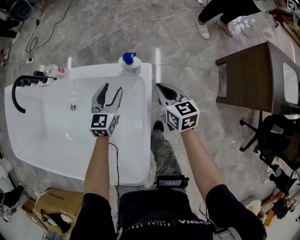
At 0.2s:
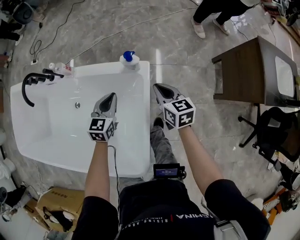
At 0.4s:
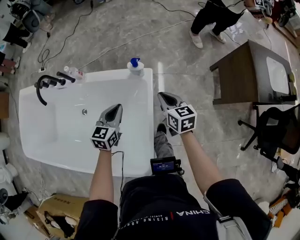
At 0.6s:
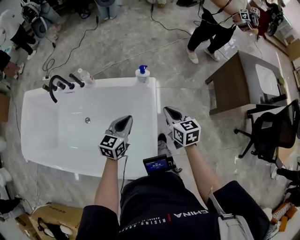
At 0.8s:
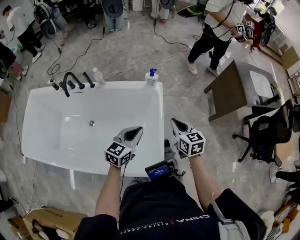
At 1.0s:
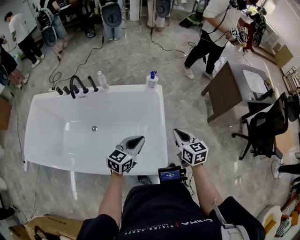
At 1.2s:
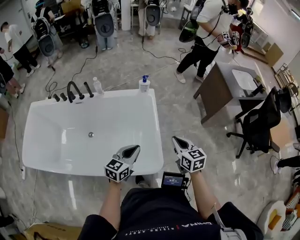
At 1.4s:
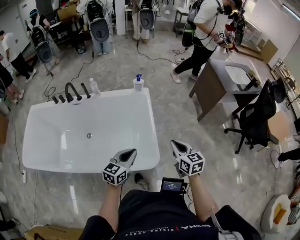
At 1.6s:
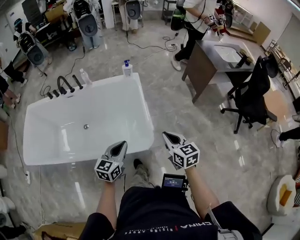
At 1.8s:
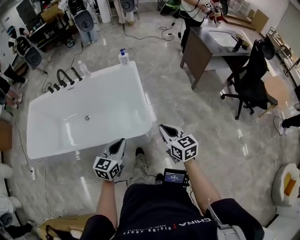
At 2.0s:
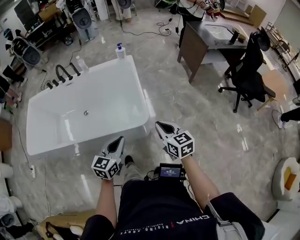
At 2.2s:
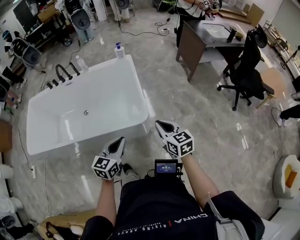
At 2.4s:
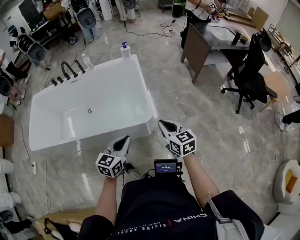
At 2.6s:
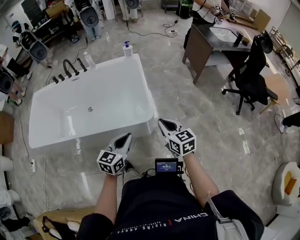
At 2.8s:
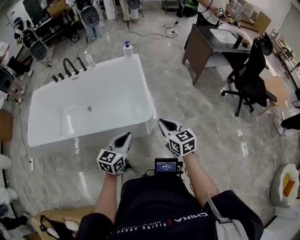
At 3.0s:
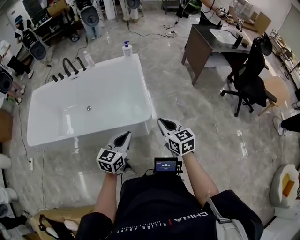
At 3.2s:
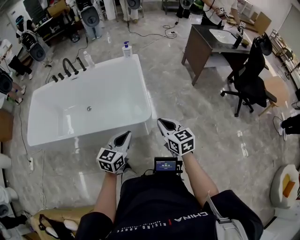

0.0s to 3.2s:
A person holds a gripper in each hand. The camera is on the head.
0.0s to 1.6s: The pair of grippers is taken backward, about 60 cm. The left gripper turns by about 30 degrees, and closes its fingers.
1.6s to 3.2s: Both grippers move backward, about 15 cm.

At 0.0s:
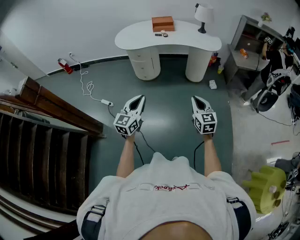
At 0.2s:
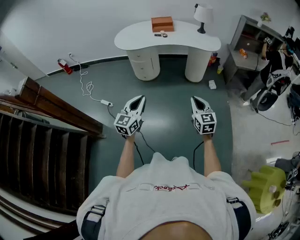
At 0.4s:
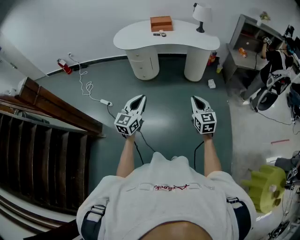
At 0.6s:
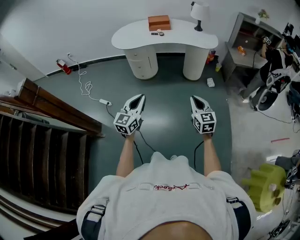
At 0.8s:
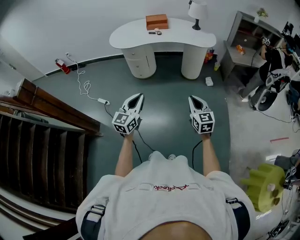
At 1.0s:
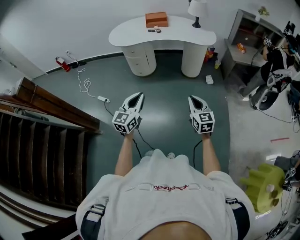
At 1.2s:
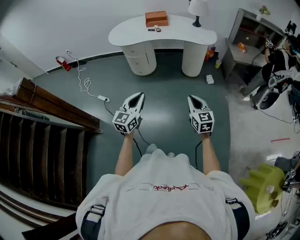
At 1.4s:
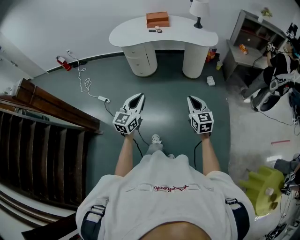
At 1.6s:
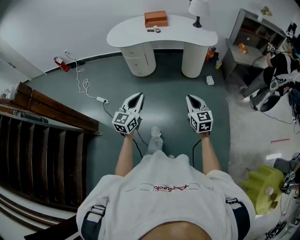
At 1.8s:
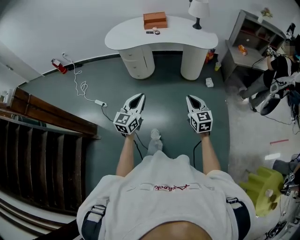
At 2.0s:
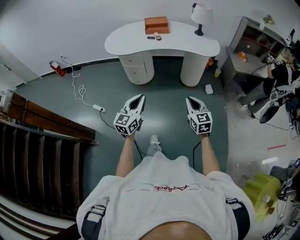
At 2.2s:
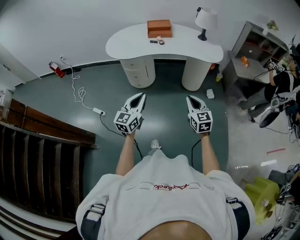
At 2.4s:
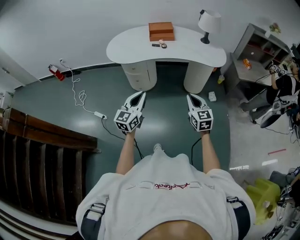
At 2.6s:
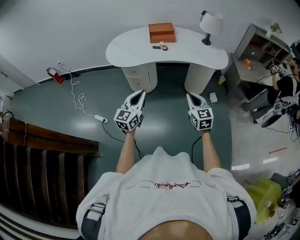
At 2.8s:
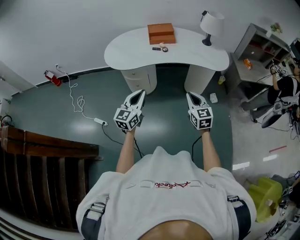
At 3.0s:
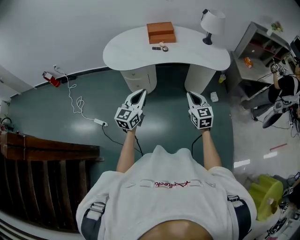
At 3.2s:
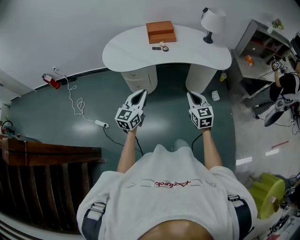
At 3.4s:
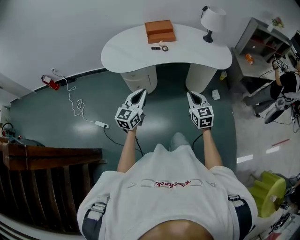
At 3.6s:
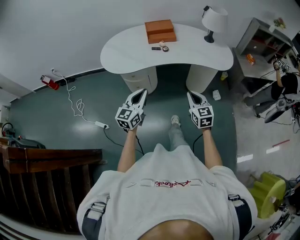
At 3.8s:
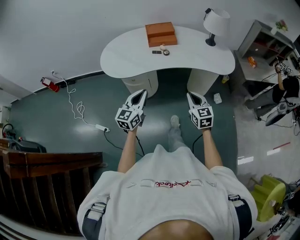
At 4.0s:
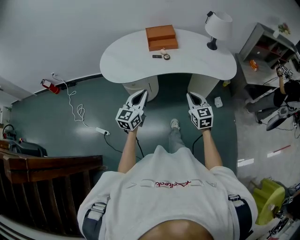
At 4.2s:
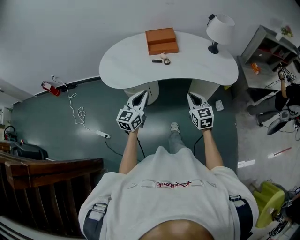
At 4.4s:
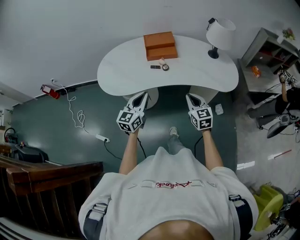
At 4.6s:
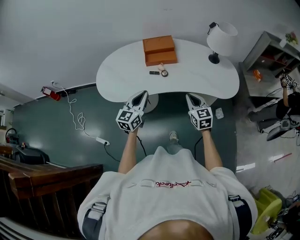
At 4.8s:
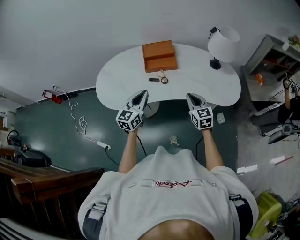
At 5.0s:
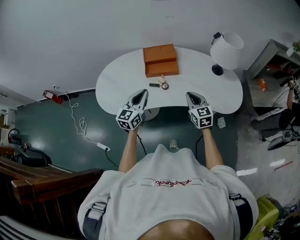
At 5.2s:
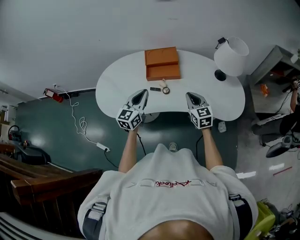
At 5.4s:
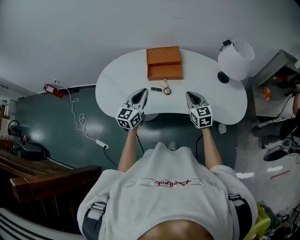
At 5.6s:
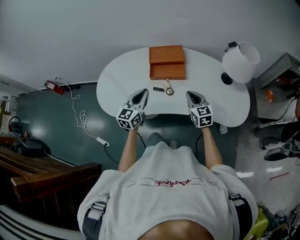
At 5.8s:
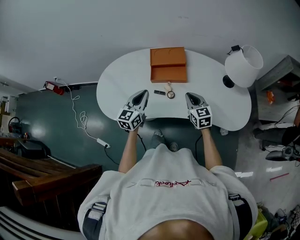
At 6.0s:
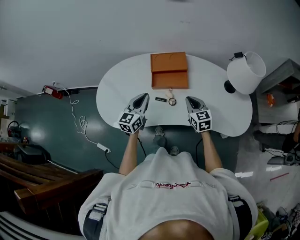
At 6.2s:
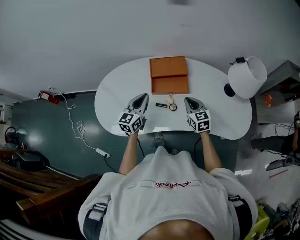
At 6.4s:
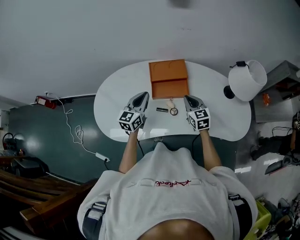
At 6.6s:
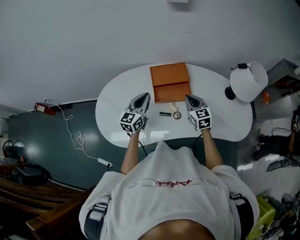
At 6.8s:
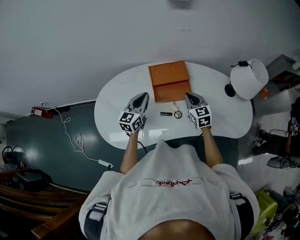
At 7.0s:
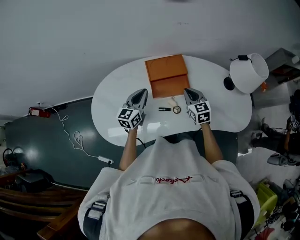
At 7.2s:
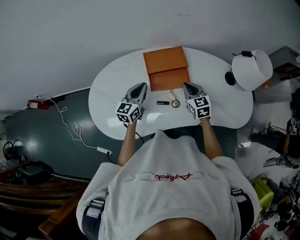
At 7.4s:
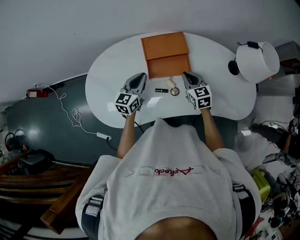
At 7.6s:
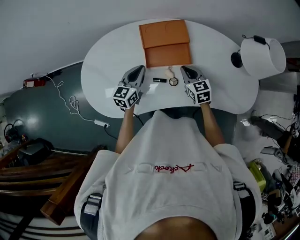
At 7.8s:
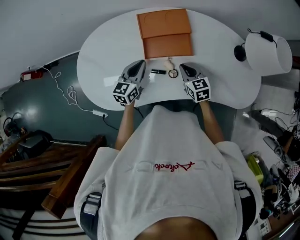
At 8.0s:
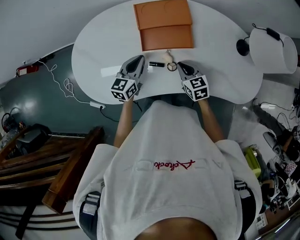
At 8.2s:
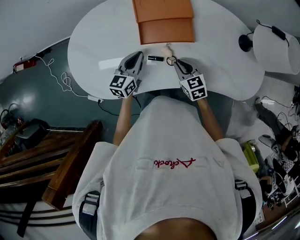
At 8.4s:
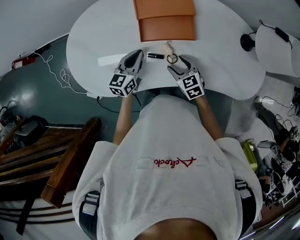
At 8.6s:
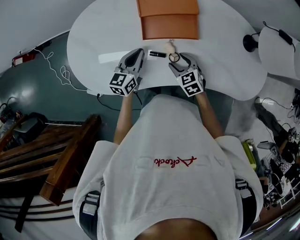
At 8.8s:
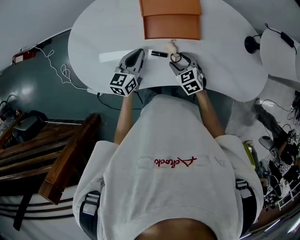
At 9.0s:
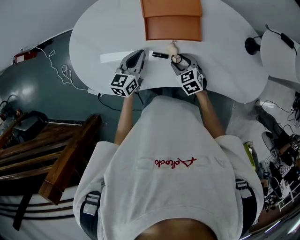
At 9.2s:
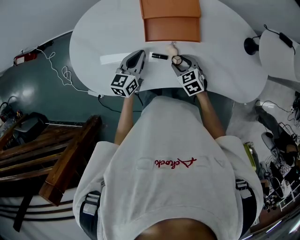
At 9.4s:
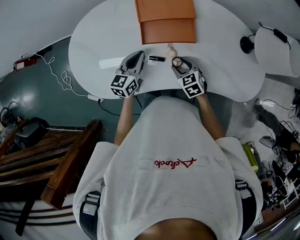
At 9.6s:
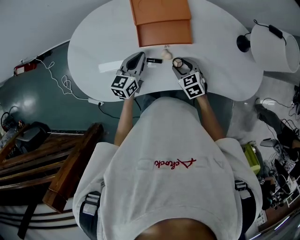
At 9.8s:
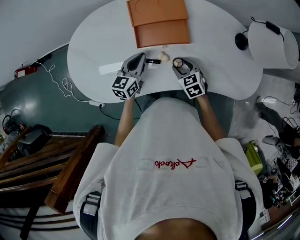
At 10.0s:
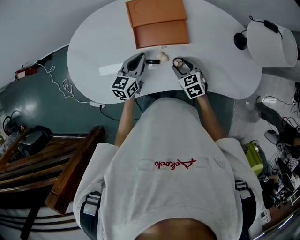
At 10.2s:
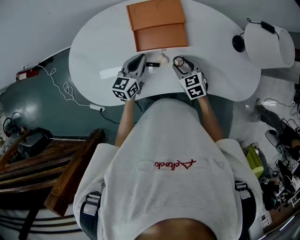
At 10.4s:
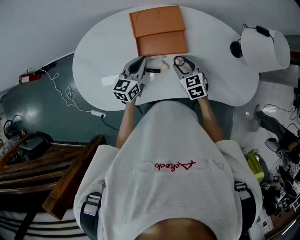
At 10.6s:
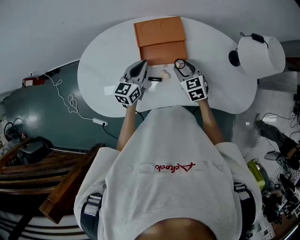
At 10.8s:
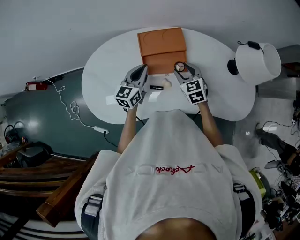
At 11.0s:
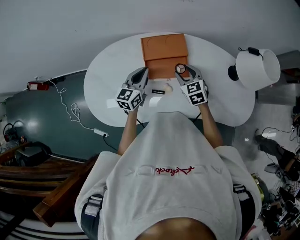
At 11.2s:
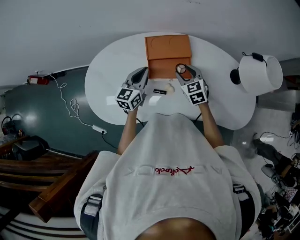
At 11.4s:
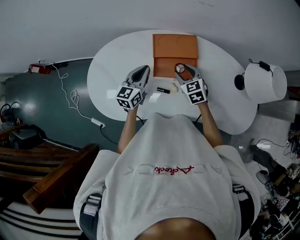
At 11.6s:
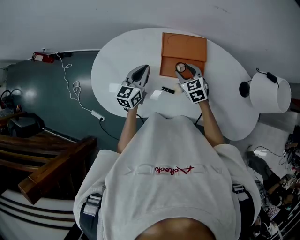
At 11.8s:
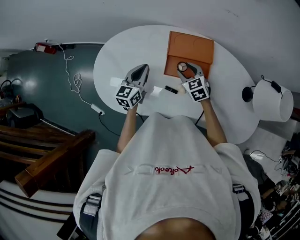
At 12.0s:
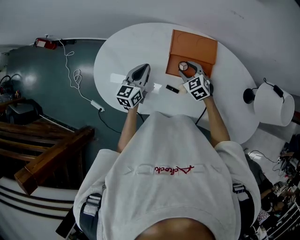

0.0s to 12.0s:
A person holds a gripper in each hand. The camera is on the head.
0.0s to 1.6s: The left gripper is displaced to the right by some 5 cm. Meanwhile the right gripper moves approximately 5 cm.
1.6s to 3.0s: The left gripper travels forward by approximately 30 cm; the right gripper is displaced forward and to the left by some 35 cm.
3.0s to 4.4s: The grippers both shift forward by roughly 20 cm.
4.4s to 6.0s: Both grippers move forward, about 30 cm.
6.0s to 7.6s: The grippers both shift forward and downward by some 15 cm.
7.6s to 9.0s: The right gripper travels downward and backward by some 15 cm, rotates some 30 degrees, and opens. The left gripper goes some 5 cm downward.
9.0s to 10.4s: The right gripper travels upward, to the right and forward by about 10 cm; the left gripper heads to the right, covering about 5 cm.
10.4s to 12.0s: The right gripper heads to the left and forward, covering roughly 15 cm, and swivels some 30 degrees, while the left gripper goes some 15 cm to the left.

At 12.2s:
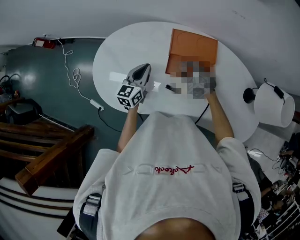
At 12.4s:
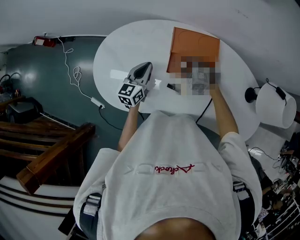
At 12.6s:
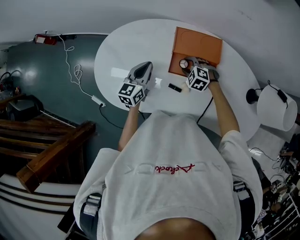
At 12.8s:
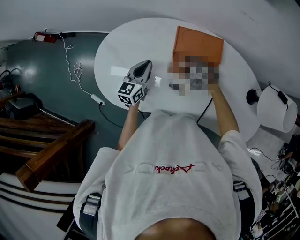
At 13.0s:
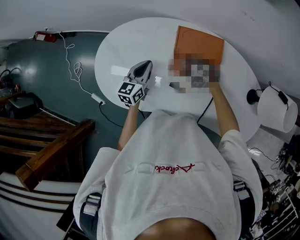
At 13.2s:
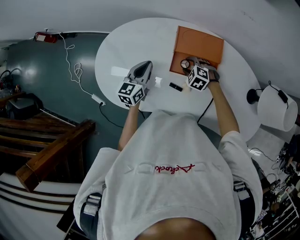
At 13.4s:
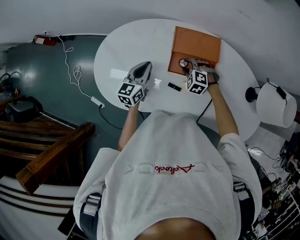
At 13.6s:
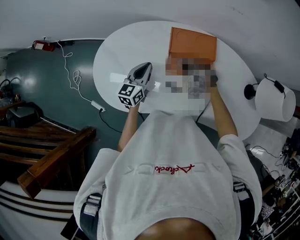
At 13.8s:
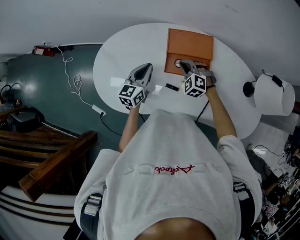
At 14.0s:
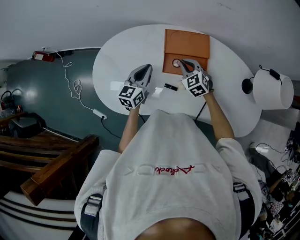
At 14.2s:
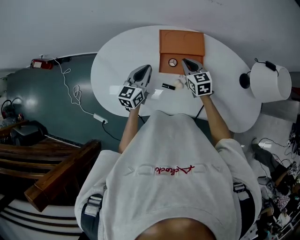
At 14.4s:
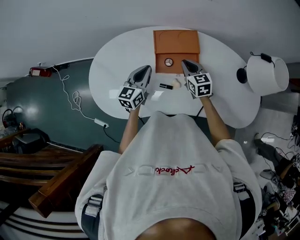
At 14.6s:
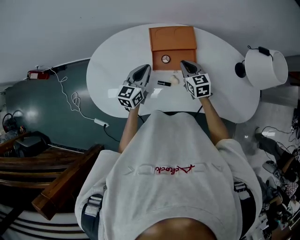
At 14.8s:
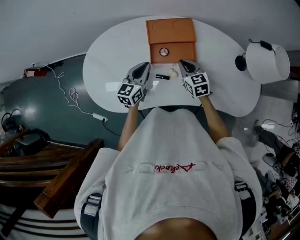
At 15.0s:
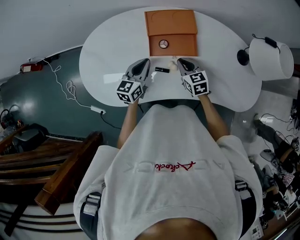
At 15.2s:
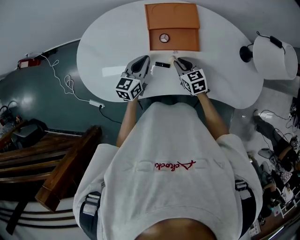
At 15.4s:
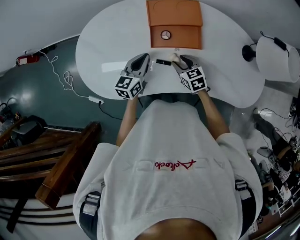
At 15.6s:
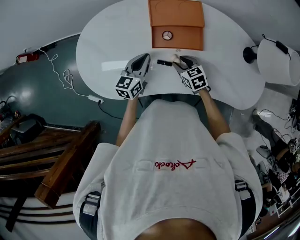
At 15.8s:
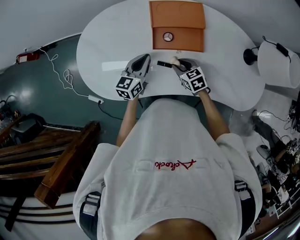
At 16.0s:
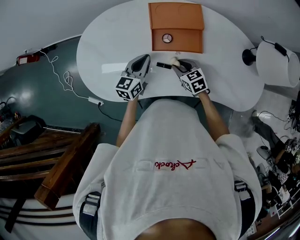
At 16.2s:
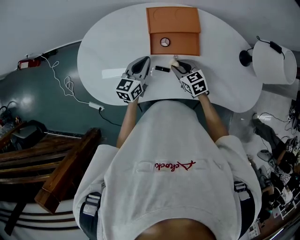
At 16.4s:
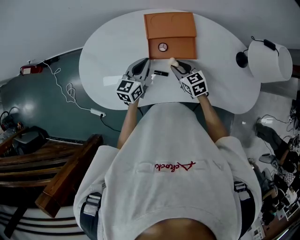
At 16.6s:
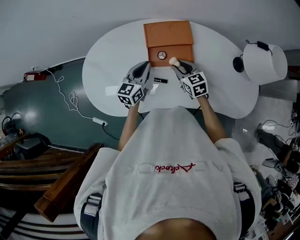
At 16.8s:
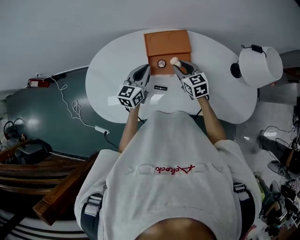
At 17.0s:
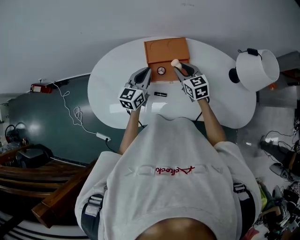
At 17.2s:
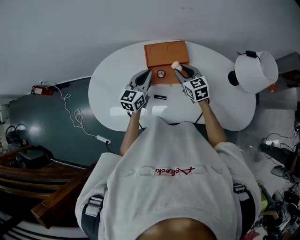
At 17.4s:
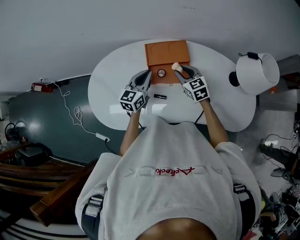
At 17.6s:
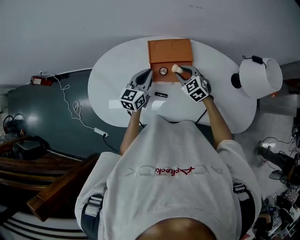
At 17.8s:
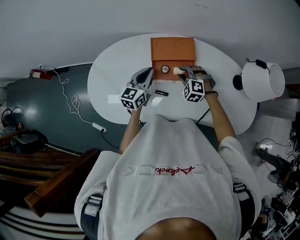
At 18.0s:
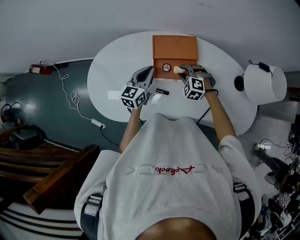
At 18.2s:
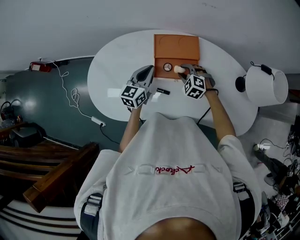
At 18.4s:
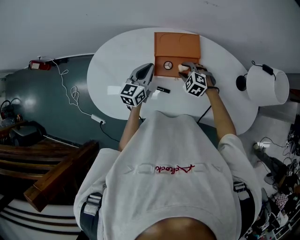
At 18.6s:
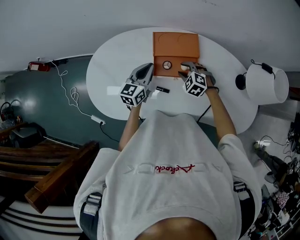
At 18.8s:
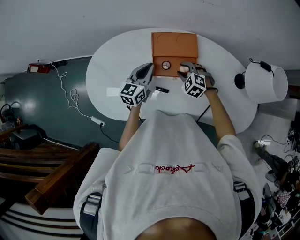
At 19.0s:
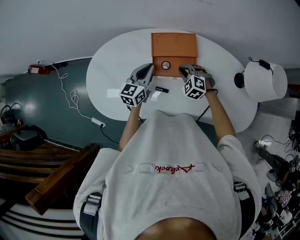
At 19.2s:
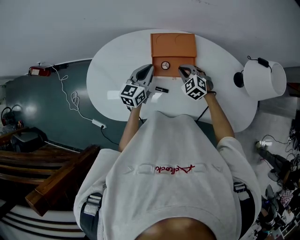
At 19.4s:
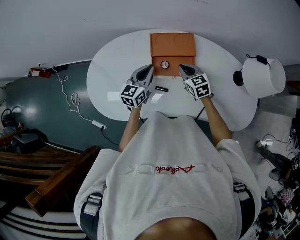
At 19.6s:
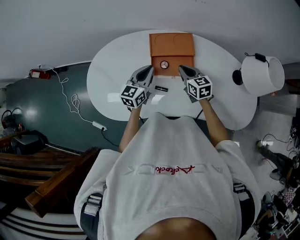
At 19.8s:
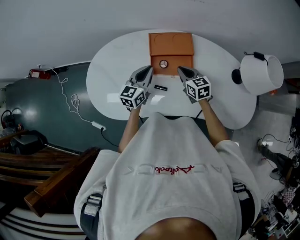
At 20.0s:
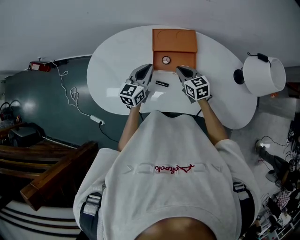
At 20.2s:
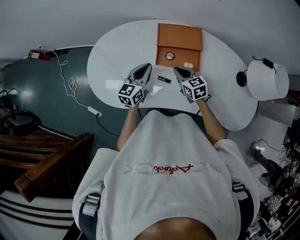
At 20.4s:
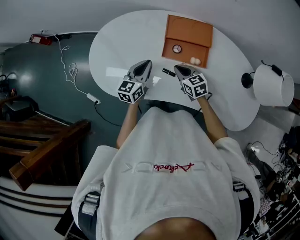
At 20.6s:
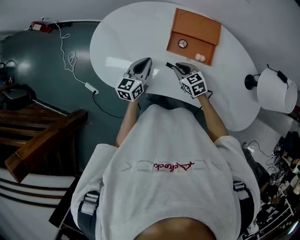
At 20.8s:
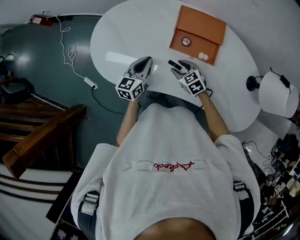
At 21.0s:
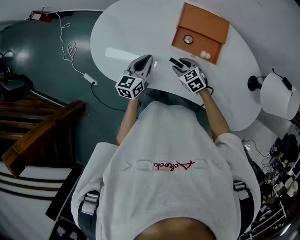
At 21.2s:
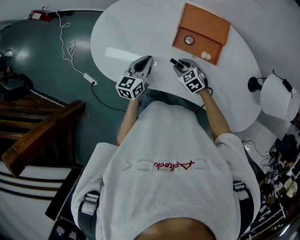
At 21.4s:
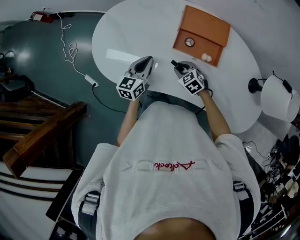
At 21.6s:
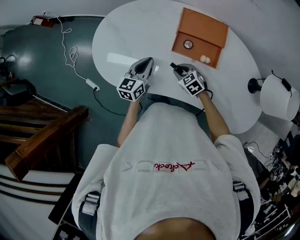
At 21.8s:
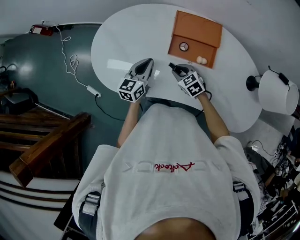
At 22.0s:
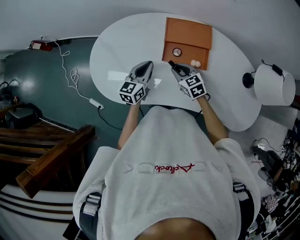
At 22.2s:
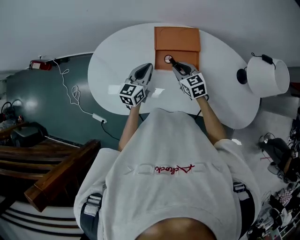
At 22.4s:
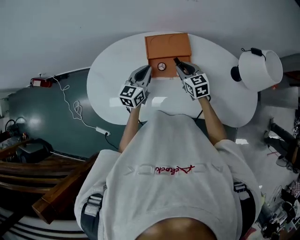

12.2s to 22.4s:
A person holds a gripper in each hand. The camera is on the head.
12.2s to 13.6s: The right gripper closes up.
13.6s to 15.2s: The right gripper shifts roughly 10 cm backward and to the right, and rolls clockwise, seen from behind, by some 70 degrees, while the left gripper moves to the right, roughly 5 cm.
15.2s to 16.6s: The right gripper shifts about 5 cm upward, while the left gripper shifts by some 5 cm.
16.6s to 18.0s: The right gripper rotates around the line of its fingers by about 60 degrees, counterclockwise from behind.
18.0s to 19.4s: The right gripper twists some 50 degrees clockwise, seen from behind, and closes its fingers.
19.4s to 21.0s: The right gripper is displaced to the left, downward and backward by some 20 cm, changes its angle by about 30 degrees, and opens up, while the left gripper travels to the left, backward and downward by roughly 15 cm.
21.0s to 22.4s: The left gripper shifts by some 15 cm, and turns by roughly 20 degrees; the right gripper moves approximately 20 cm, and rotates some 40 degrees.
